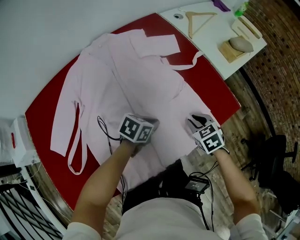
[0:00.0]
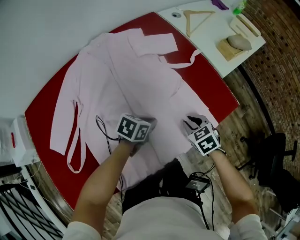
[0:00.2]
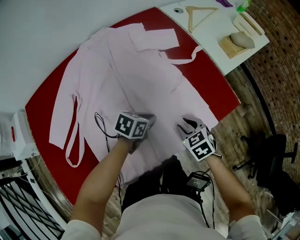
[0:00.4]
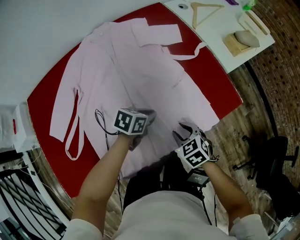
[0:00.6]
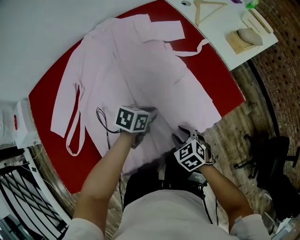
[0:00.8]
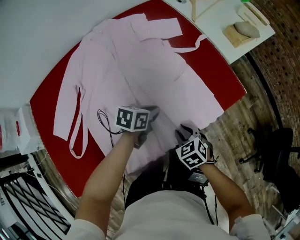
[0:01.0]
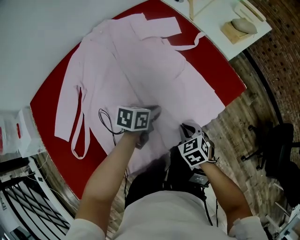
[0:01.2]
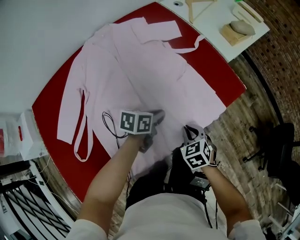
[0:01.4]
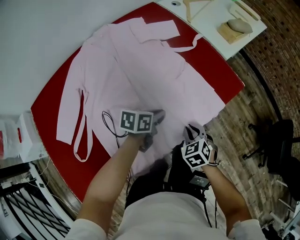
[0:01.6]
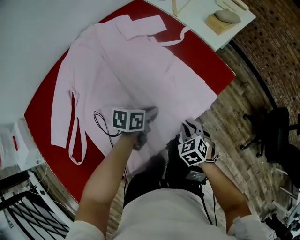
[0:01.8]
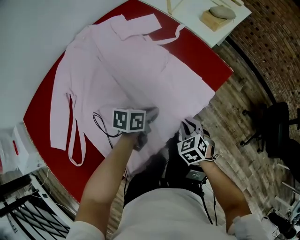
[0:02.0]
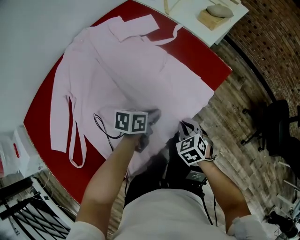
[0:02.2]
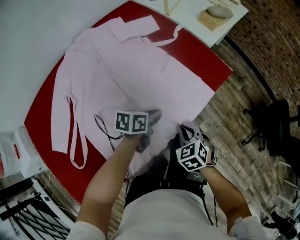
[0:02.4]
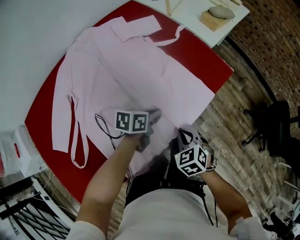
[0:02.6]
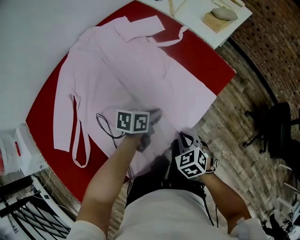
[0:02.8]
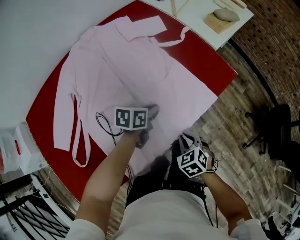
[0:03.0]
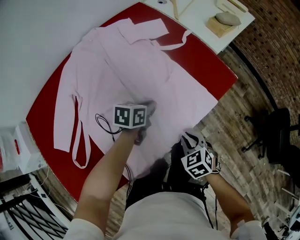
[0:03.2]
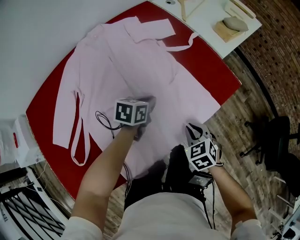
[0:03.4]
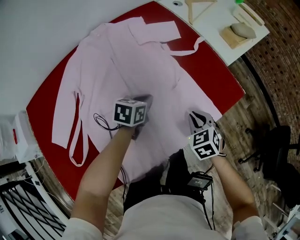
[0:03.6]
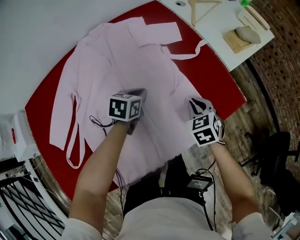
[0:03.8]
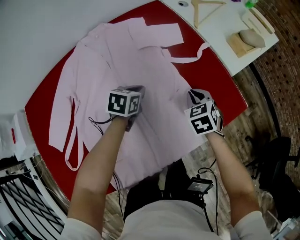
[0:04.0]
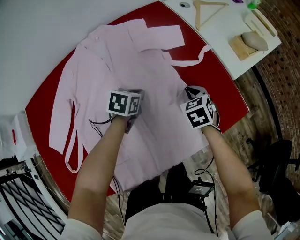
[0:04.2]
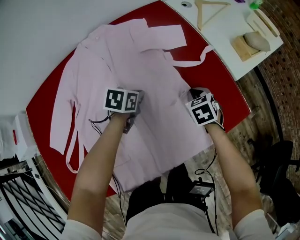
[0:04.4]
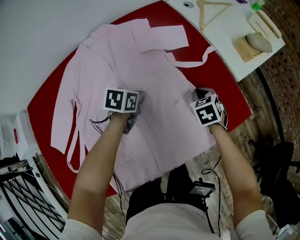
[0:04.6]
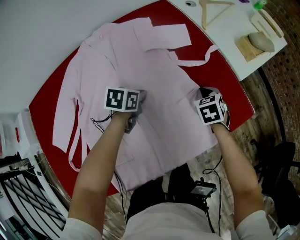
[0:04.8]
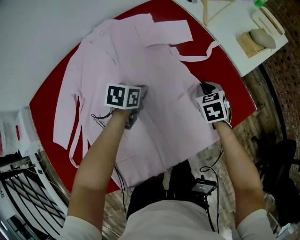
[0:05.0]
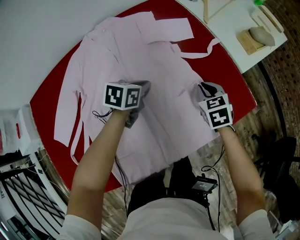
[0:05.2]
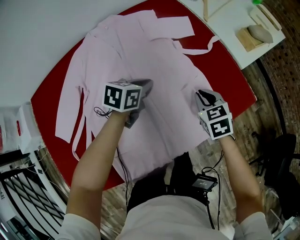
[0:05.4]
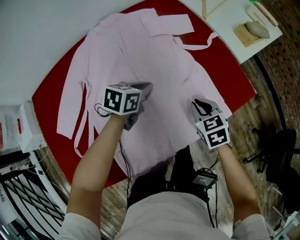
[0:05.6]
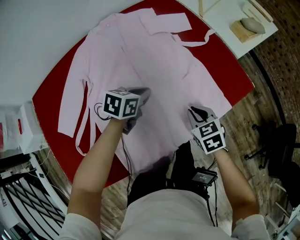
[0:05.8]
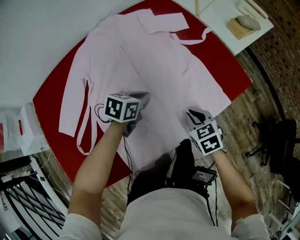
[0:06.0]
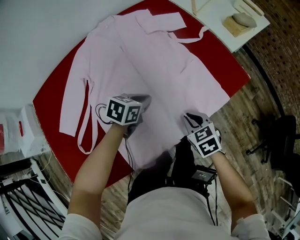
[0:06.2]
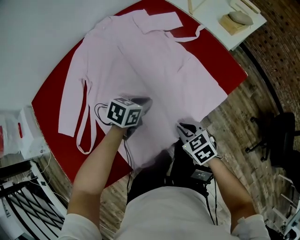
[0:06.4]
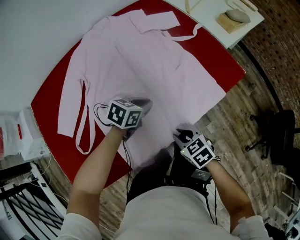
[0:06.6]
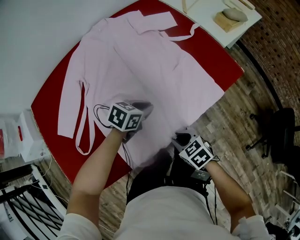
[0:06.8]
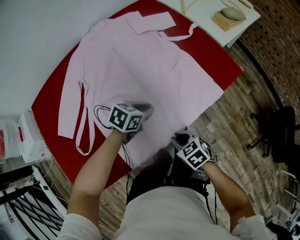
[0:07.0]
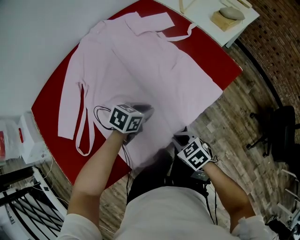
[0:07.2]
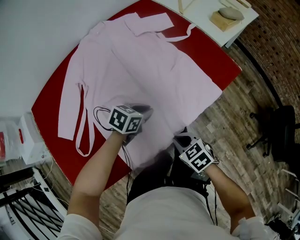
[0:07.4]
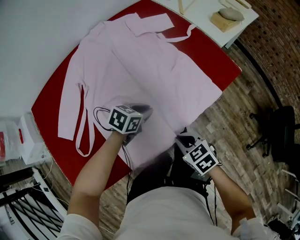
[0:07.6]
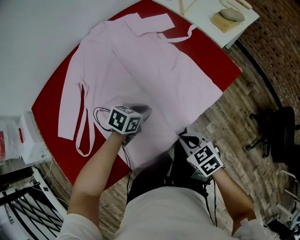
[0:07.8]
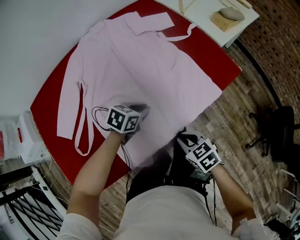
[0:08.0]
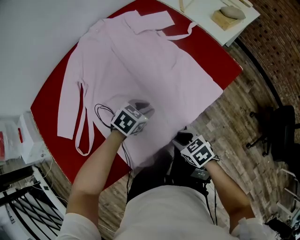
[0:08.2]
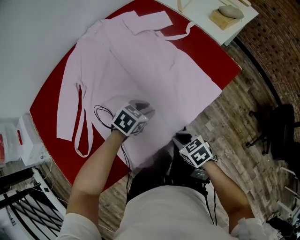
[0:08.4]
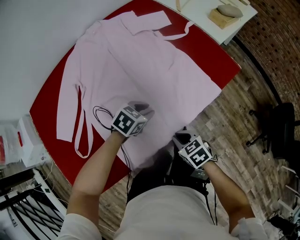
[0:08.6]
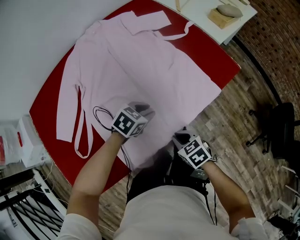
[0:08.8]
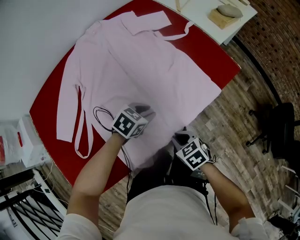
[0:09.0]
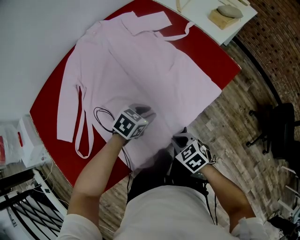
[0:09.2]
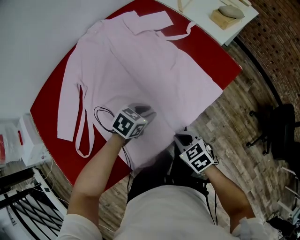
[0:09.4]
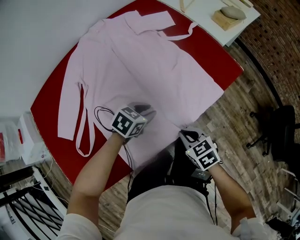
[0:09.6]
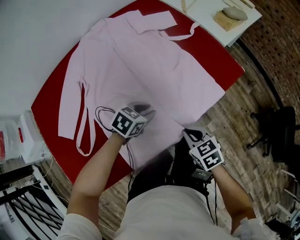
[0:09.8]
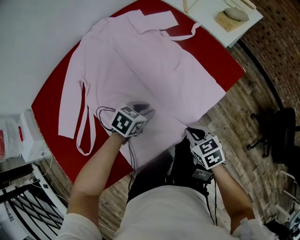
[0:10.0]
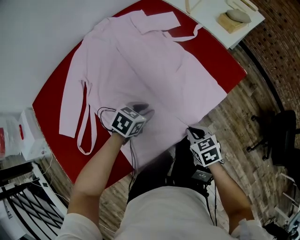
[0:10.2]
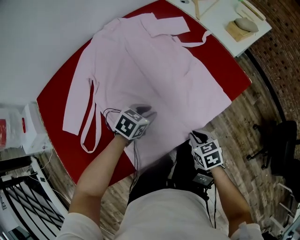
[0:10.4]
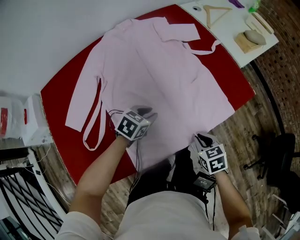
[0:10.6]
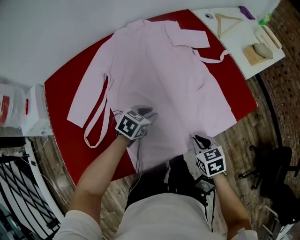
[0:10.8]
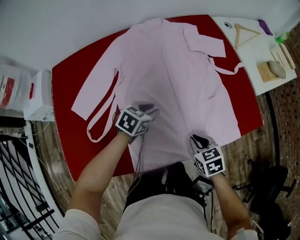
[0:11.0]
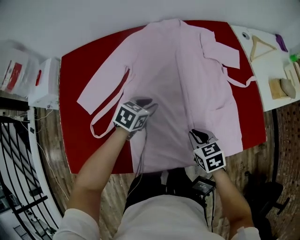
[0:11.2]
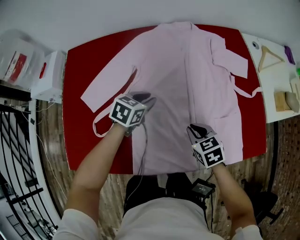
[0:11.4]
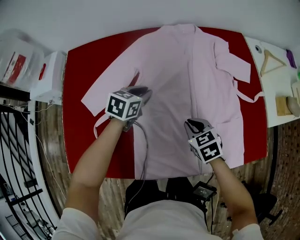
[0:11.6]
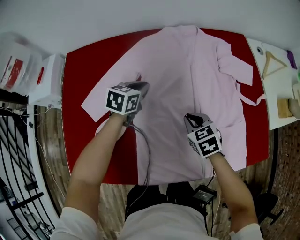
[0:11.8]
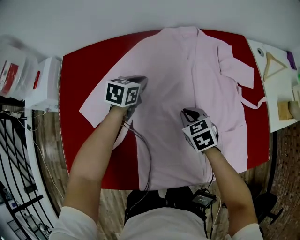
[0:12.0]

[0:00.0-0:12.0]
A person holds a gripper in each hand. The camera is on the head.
0:00.0 to 0:01.6: The right gripper moves backward, approximately 15 cm.
0:01.6 to 0:03.0: The right gripper shifts about 5 cm backward.
0:03.0 to 0:04.4: The right gripper shifts roughly 30 cm forward. The left gripper moves forward and to the left, roughly 20 cm, and swivels some 20 degrees.
0:04.4 to 0:06.0: The left gripper travels backward by roughly 15 cm. The right gripper heads backward, covering roughly 25 cm.
0:06.0 to 0:07.6: The left gripper moves backward, approximately 5 cm; the right gripper shifts about 15 cm backward.
0:07.6 to 0:09.0: There are only small adjustments of the grippers.
0:09.0 to 0:10.4: The right gripper ends up some 5 cm from where it was.
0:10.4 to 0:12.0: The right gripper ends up some 35 cm from where it was, and swivels about 40 degrees. Meanwhile the left gripper changes place by roughly 35 cm, rotates about 50 degrees, and closes up.

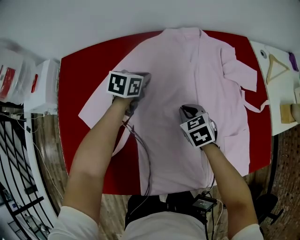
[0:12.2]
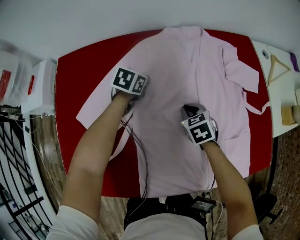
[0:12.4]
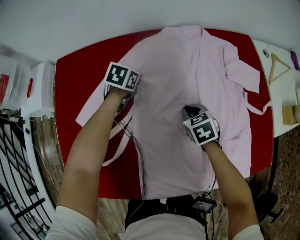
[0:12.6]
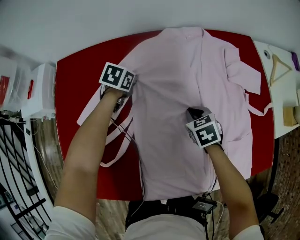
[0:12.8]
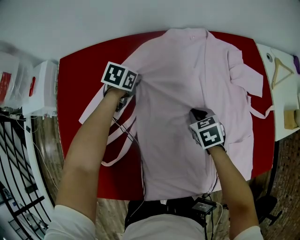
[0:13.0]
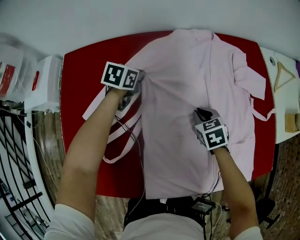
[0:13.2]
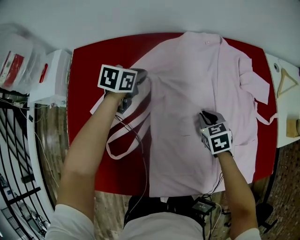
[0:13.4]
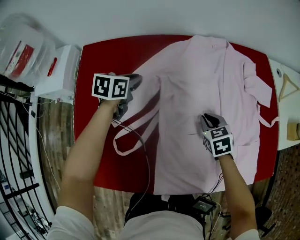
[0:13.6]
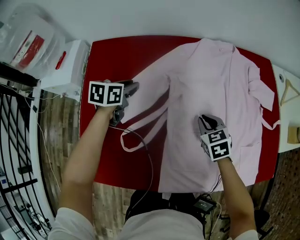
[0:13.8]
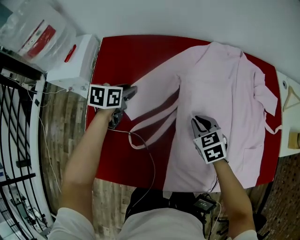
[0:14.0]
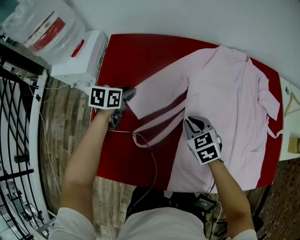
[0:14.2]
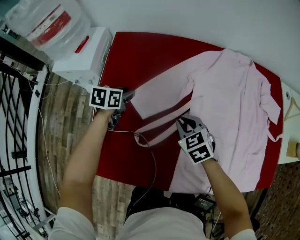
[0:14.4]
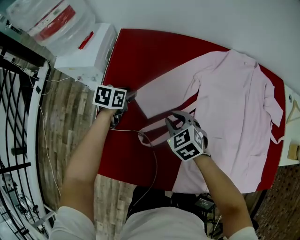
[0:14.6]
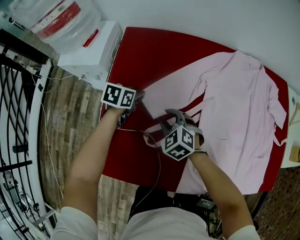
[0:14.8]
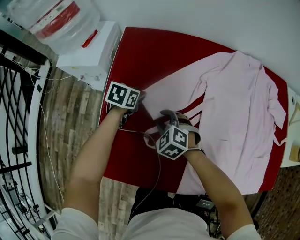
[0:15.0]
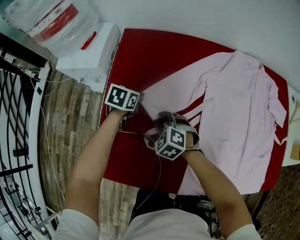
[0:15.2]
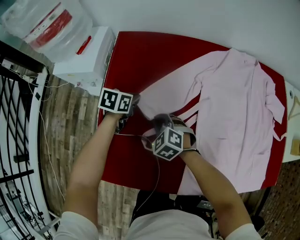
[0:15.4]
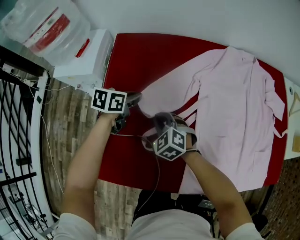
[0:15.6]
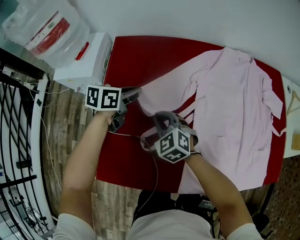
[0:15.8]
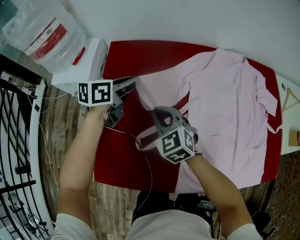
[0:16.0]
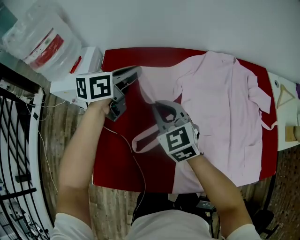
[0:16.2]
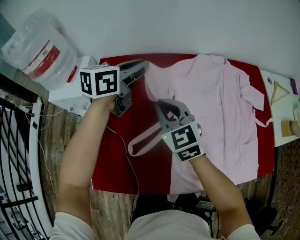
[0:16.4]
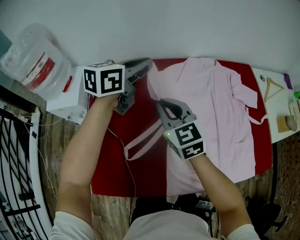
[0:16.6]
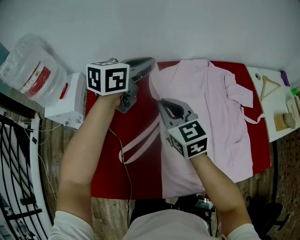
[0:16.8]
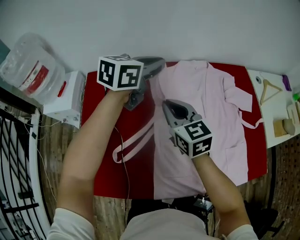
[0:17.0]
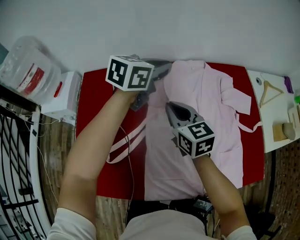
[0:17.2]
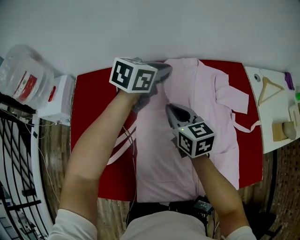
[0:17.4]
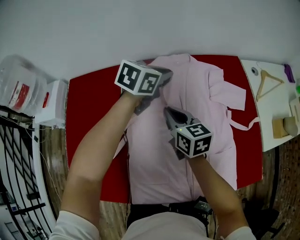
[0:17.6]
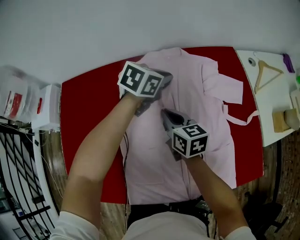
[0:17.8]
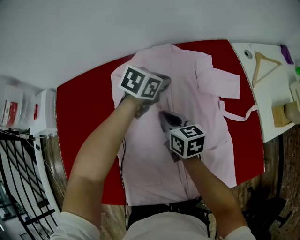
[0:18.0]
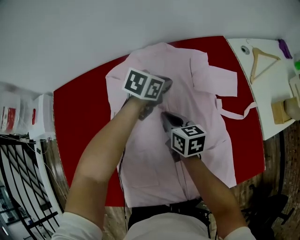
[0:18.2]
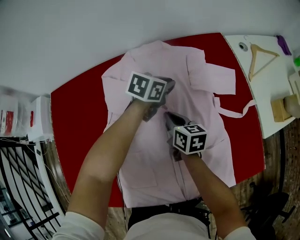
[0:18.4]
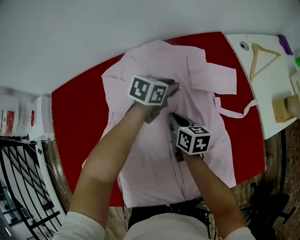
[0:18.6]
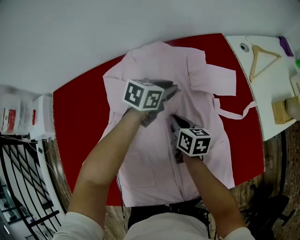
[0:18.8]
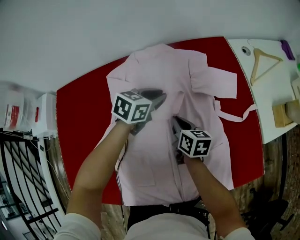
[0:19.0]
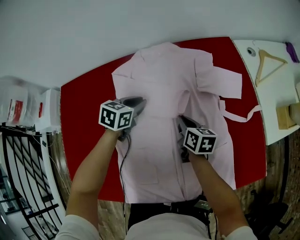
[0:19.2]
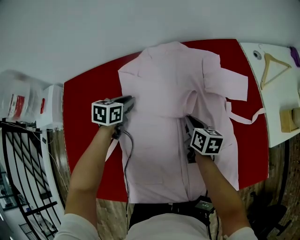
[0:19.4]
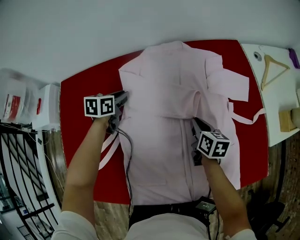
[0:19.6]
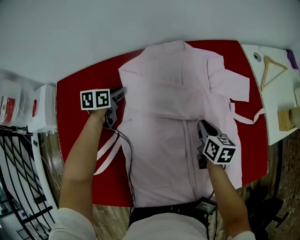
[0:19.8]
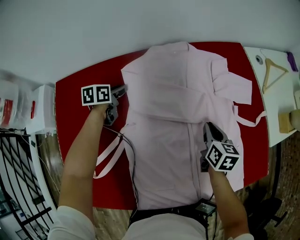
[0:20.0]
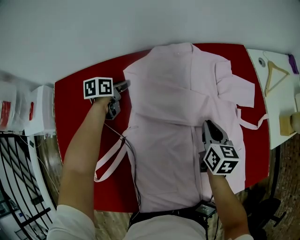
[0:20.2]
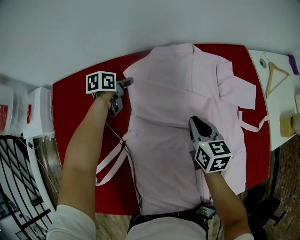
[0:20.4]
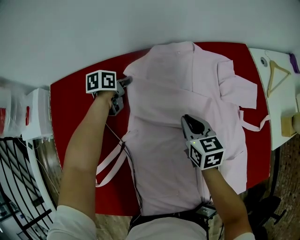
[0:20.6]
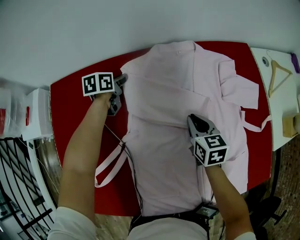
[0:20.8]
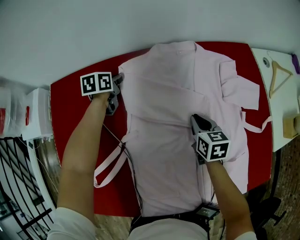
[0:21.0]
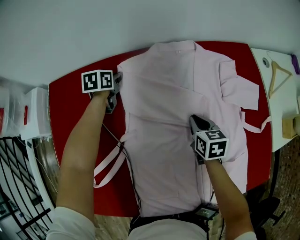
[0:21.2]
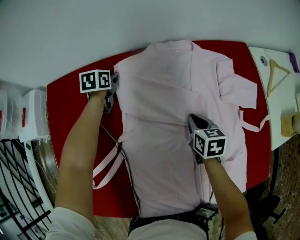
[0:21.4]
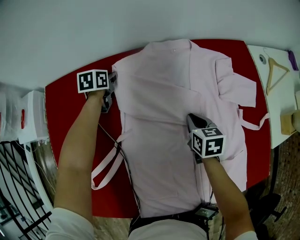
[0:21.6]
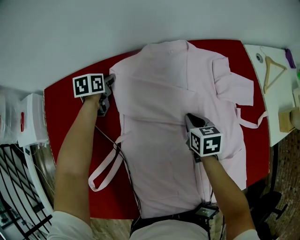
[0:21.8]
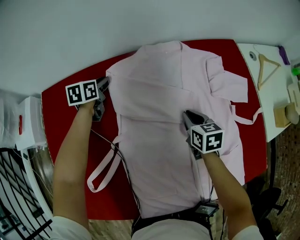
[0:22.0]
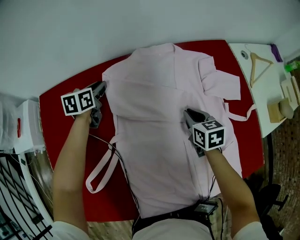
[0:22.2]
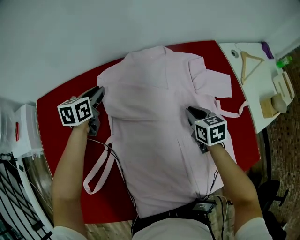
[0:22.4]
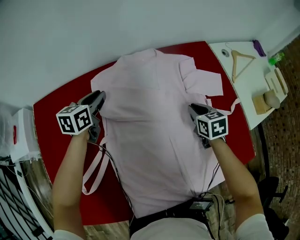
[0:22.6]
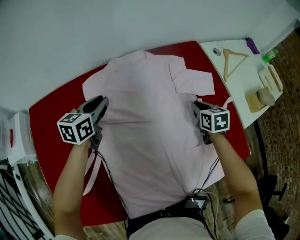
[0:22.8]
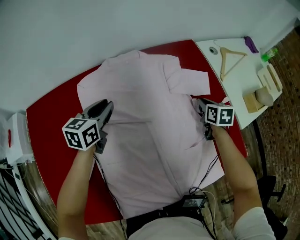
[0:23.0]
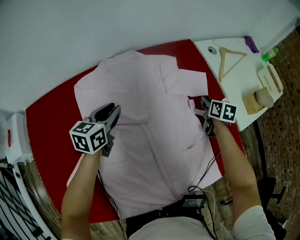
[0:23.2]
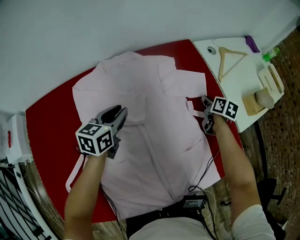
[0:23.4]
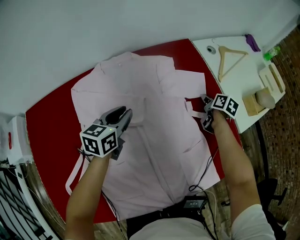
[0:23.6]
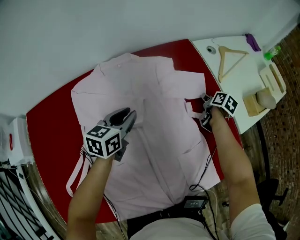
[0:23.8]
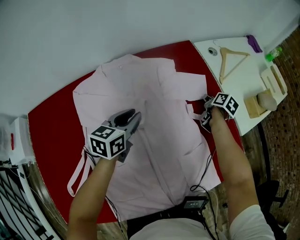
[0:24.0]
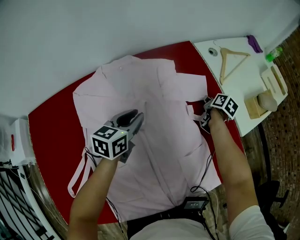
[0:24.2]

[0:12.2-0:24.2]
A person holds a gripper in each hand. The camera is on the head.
0:12.2 to 0:13.8: The left gripper heads to the left and backward, covering some 20 cm, and opens up; the right gripper ends up roughly 5 cm from where it was.
0:13.8 to 0:15.2: The left gripper moves to the left and downward, some 15 cm, while the right gripper travels to the left by approximately 30 cm, rotates roughly 40 degrees, and opens.
0:15.2 to 0:16.6: Both grippers travel together upward and to the right, about 35 cm. The left gripper tilts its fingers roughly 40 degrees upward. Meanwhile the right gripper points its fingers about 30 degrees further upward, and closes.
0:16.6 to 0:18.2: Both grippers move to the right and downward, roughly 35 cm. The right gripper twists some 40 degrees clockwise, seen from behind; the left gripper rotates some 30 degrees.
0:18.2 to 0:19.8: The left gripper is displaced to the left by approximately 30 cm, and changes its angle by approximately 30 degrees; the right gripper moves to the right, approximately 10 cm.
0:19.8 to 0:21.2: The right gripper shifts roughly 10 cm to the left. The left gripper moves forward and to the left, about 10 cm.
0:21.2 to 0:22.6: The right gripper is displaced to the right and upward by some 15 cm. Meanwhile the left gripper moves upward, backward and to the right, about 15 cm, and turns by some 20 degrees.
0:22.6 to 0:24.2: The left gripper heads to the right, covering some 25 cm. The right gripper moves to the right and forward, roughly 25 cm, and rolls clockwise, seen from behind, by approximately 50 degrees.
